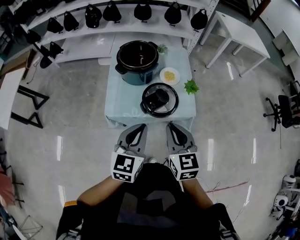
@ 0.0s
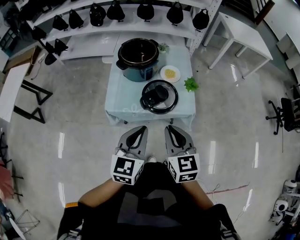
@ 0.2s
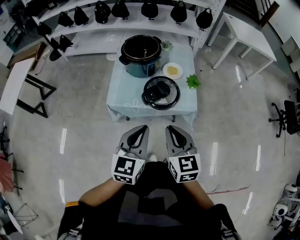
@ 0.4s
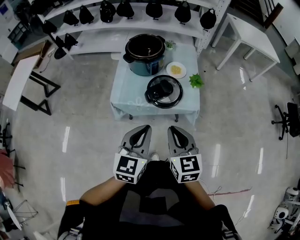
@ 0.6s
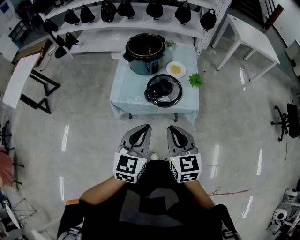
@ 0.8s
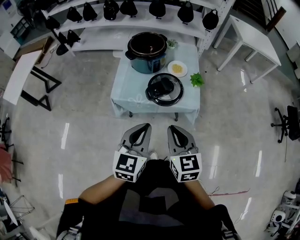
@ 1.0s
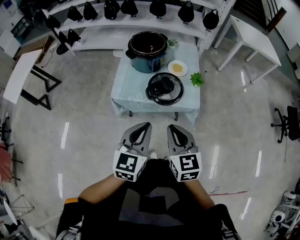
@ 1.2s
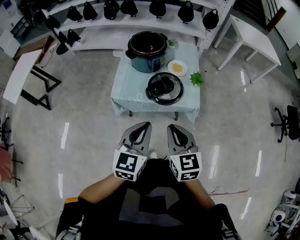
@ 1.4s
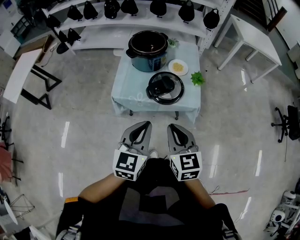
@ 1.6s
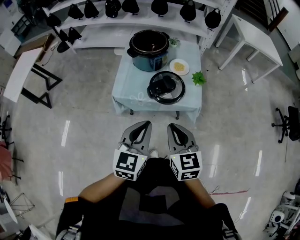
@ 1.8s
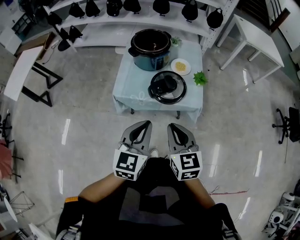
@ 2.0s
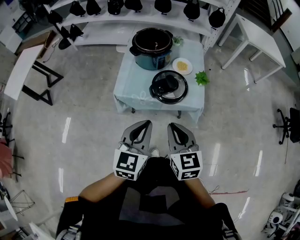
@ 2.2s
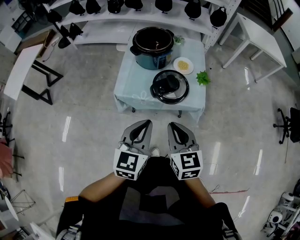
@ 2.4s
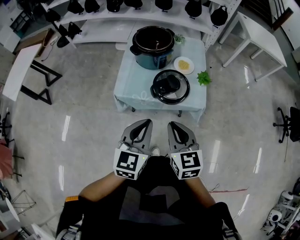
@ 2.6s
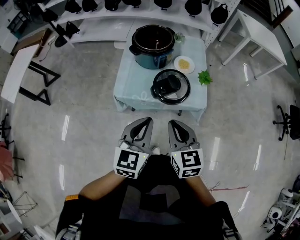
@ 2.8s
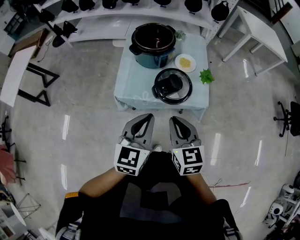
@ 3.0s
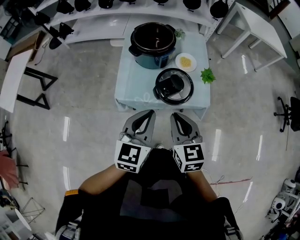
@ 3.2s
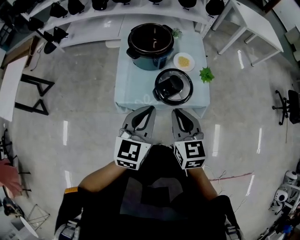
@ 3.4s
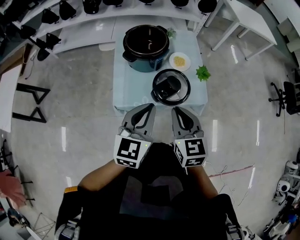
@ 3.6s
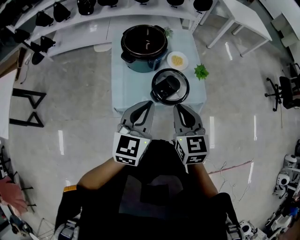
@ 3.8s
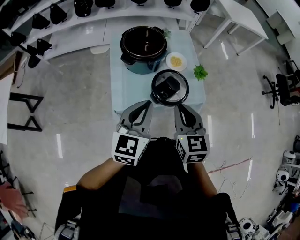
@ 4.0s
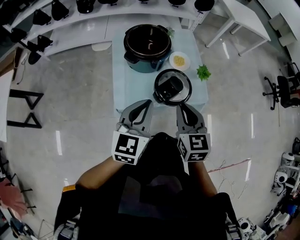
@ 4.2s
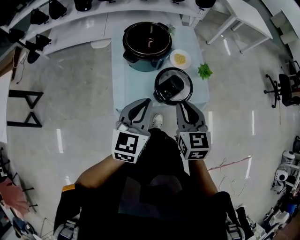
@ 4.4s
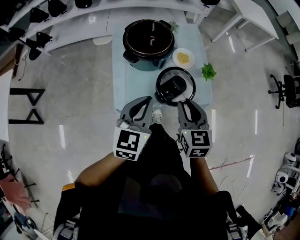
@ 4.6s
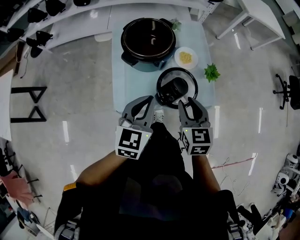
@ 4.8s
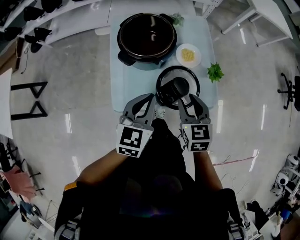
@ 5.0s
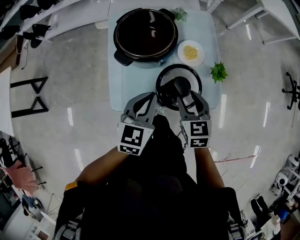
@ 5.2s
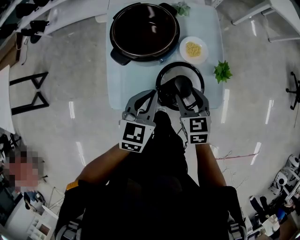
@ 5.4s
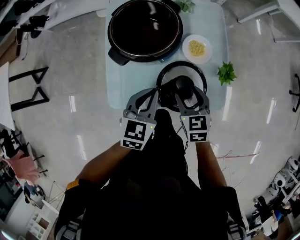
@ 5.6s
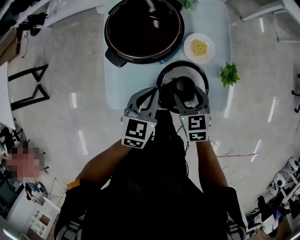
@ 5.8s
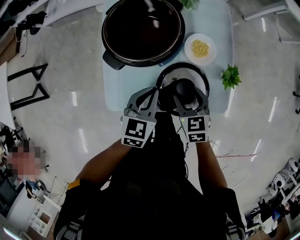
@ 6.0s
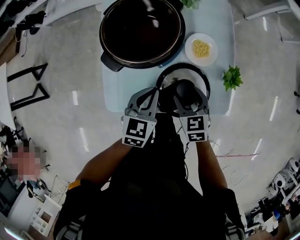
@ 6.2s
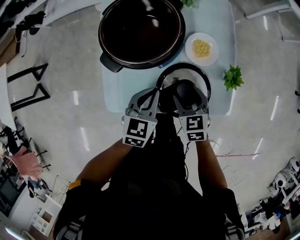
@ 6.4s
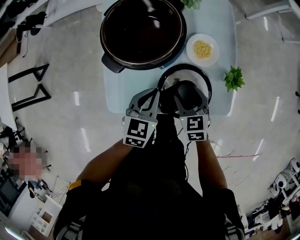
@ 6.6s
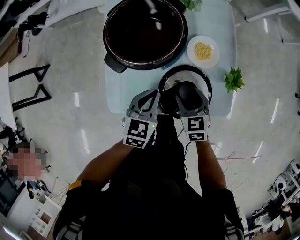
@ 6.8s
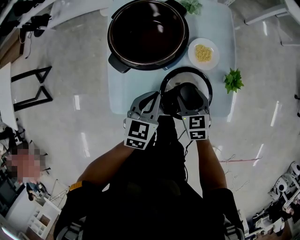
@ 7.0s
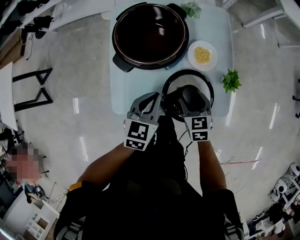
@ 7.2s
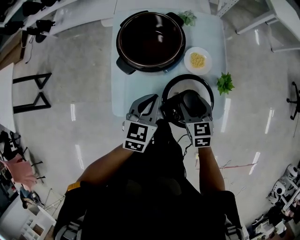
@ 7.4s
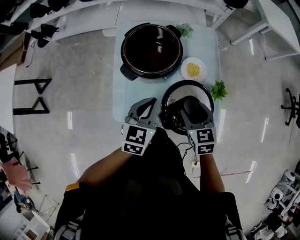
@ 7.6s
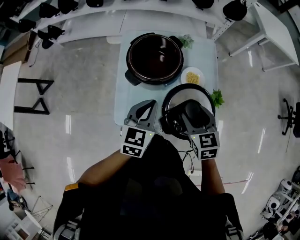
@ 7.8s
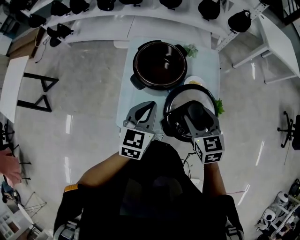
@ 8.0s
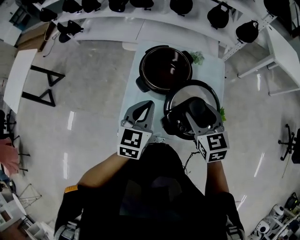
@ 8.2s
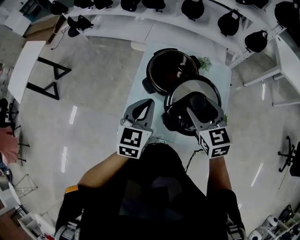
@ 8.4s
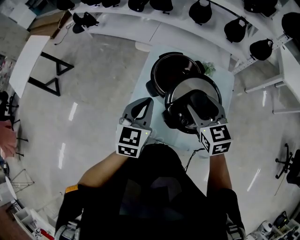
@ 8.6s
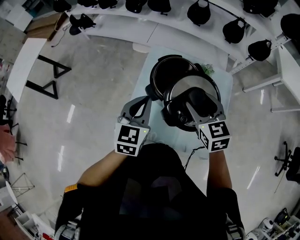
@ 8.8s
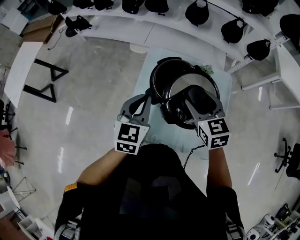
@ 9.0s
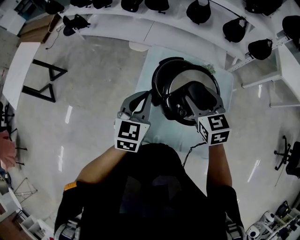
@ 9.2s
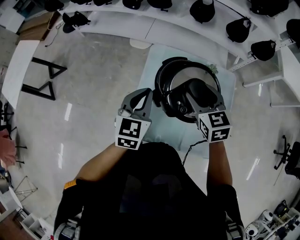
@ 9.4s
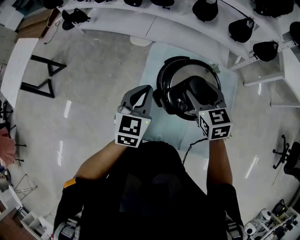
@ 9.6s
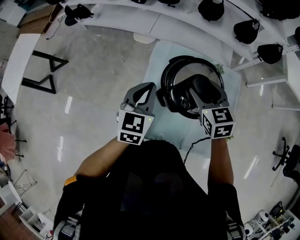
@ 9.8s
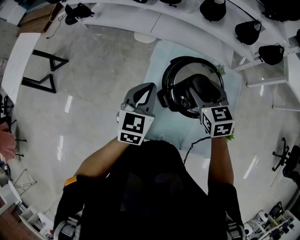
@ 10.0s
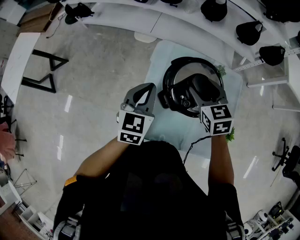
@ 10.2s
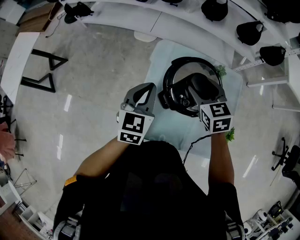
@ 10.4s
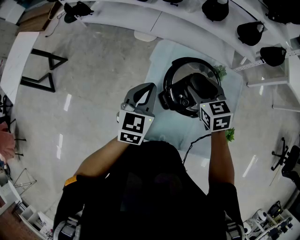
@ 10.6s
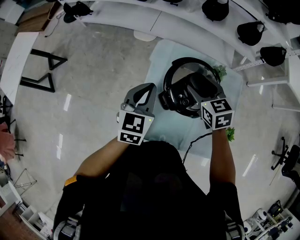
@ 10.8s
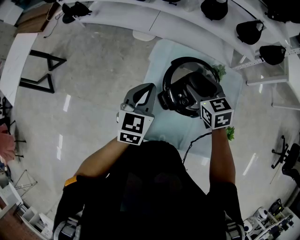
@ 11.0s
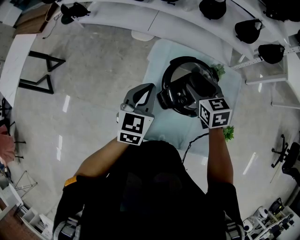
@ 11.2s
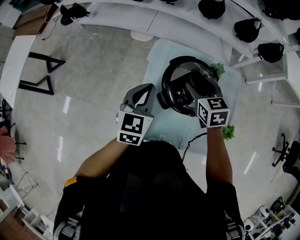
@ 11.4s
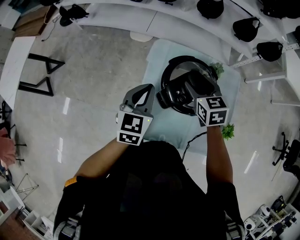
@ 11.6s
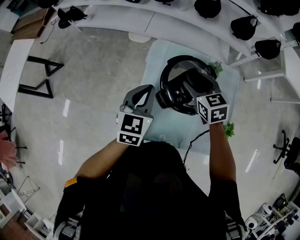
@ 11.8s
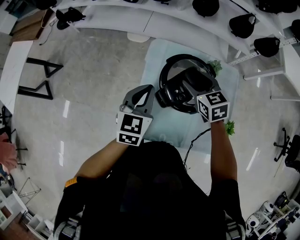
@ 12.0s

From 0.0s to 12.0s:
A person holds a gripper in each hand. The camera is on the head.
From 0.0s to 1.6s: The two grippers go some 10 cm backward.
From 1.6s to 3.0s: The two grippers go roughly 10 cm forward.
From 3.0s to 4.4s: The two grippers go approximately 15 cm forward and to the left.
From 4.4s to 6.0s: Both grippers travel together downward and forward, some 25 cm. The right gripper changes its angle by approximately 20 degrees, and opens its fingers. The left gripper rotates roughly 20 degrees.
From 6.0s to 7.6s: The two grippers go some 10 cm upward.
From 7.6s to 9.0s: The right gripper moves forward, upward and to the left, some 25 cm, and turns by about 20 degrees, while the left gripper is displaced to the left, upward and forward by approximately 20 cm, and changes its angle by approximately 20 degrees.
From 9.0s to 10.4s: The left gripper is displaced forward by about 5 cm; the right gripper travels forward and to the left by about 10 cm.
From 10.4s to 12.0s: The grippers move only a little.

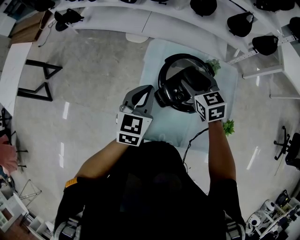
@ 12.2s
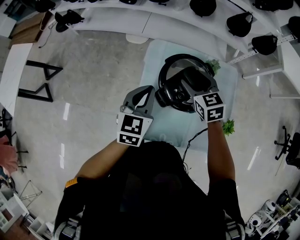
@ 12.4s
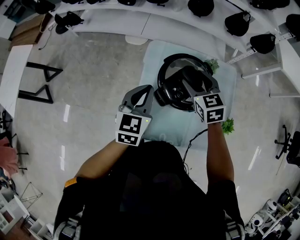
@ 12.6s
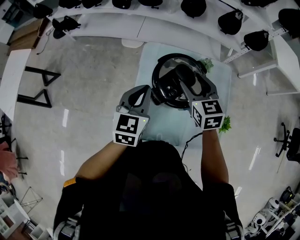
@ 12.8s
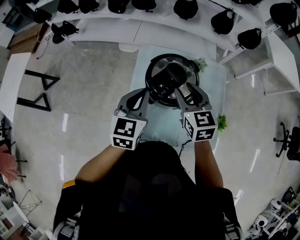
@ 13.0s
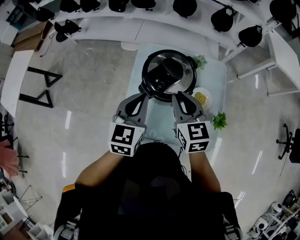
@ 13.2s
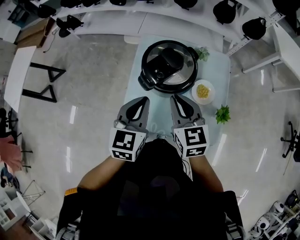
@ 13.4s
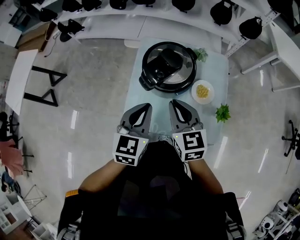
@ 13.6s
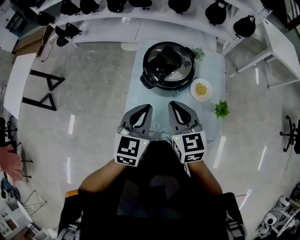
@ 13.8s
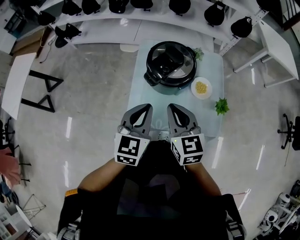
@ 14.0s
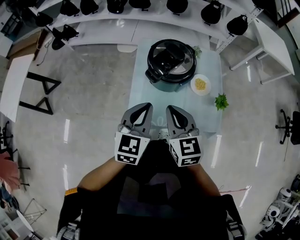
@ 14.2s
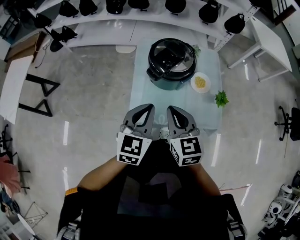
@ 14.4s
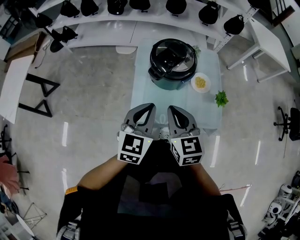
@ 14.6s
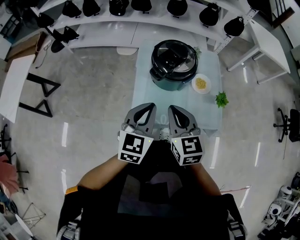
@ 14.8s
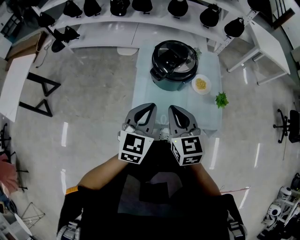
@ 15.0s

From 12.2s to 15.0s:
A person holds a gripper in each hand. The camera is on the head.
From 12.2s to 13.6s: The right gripper heads backward, covering approximately 20 cm, and closes its fingers; the left gripper heads backward and to the right, covering some 15 cm.
From 13.6s to 15.0s: Both grippers travel together backward and to the left, roughly 10 cm.

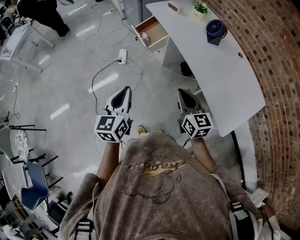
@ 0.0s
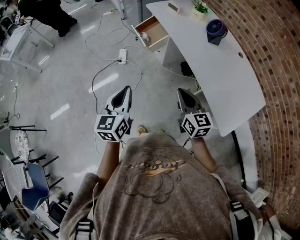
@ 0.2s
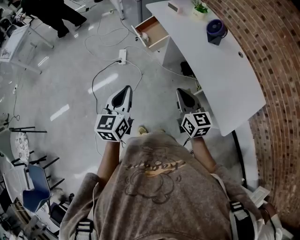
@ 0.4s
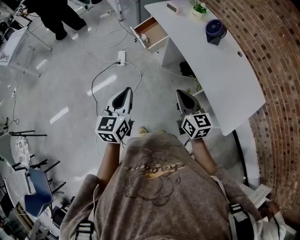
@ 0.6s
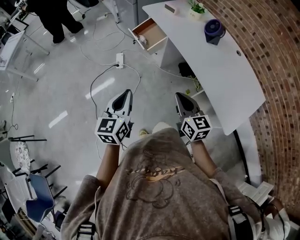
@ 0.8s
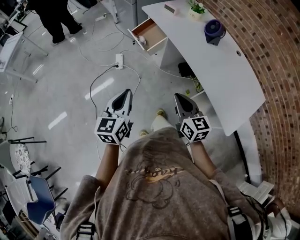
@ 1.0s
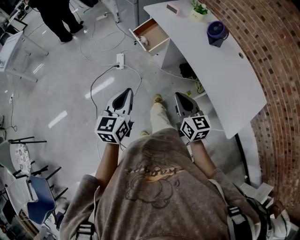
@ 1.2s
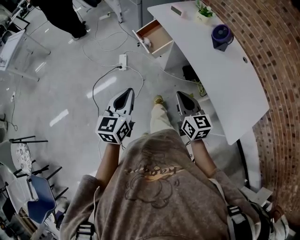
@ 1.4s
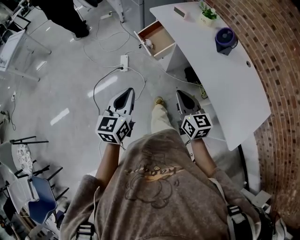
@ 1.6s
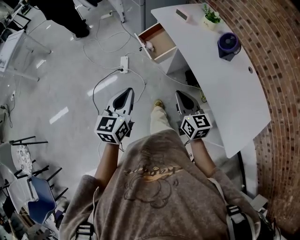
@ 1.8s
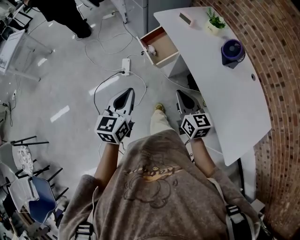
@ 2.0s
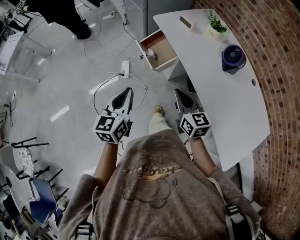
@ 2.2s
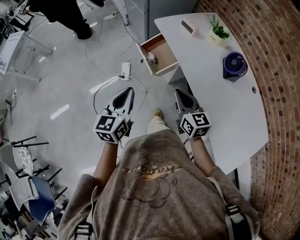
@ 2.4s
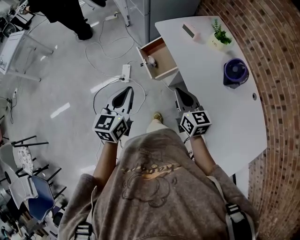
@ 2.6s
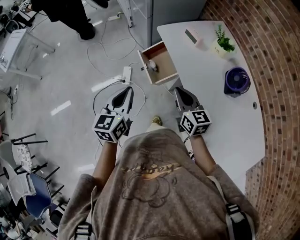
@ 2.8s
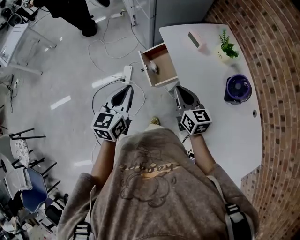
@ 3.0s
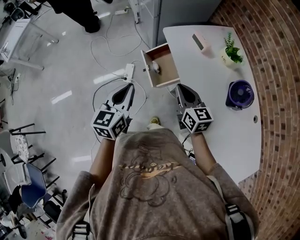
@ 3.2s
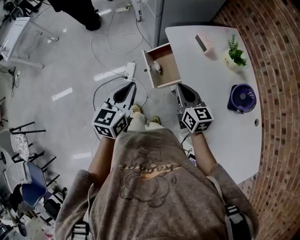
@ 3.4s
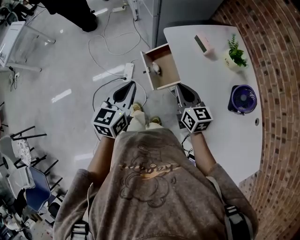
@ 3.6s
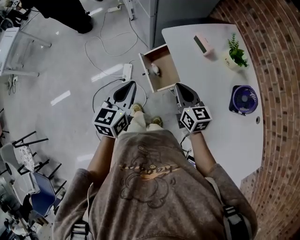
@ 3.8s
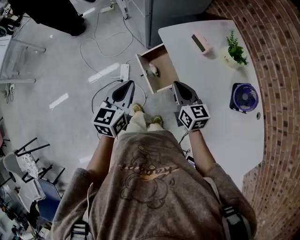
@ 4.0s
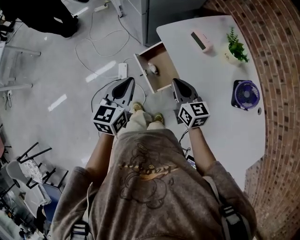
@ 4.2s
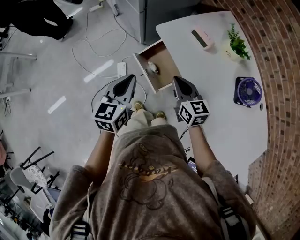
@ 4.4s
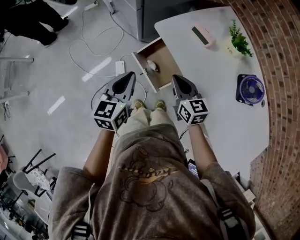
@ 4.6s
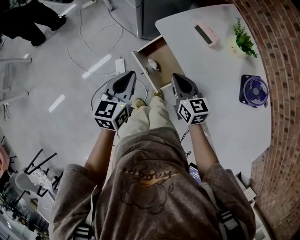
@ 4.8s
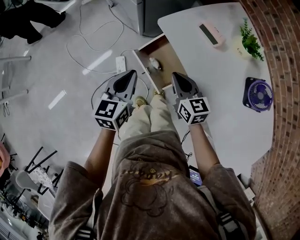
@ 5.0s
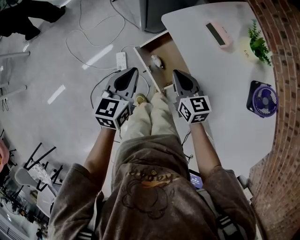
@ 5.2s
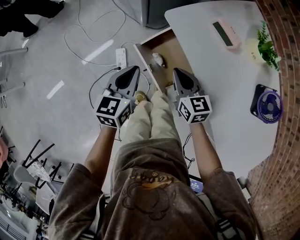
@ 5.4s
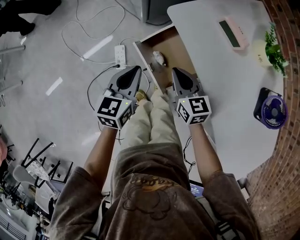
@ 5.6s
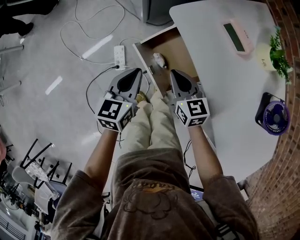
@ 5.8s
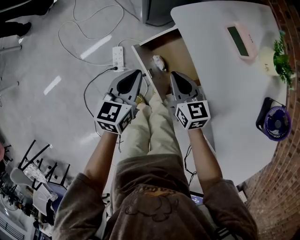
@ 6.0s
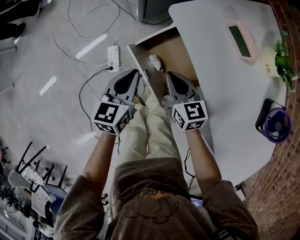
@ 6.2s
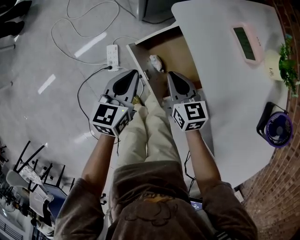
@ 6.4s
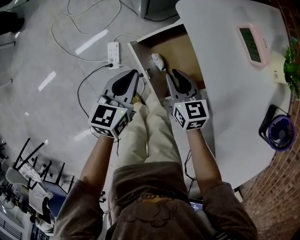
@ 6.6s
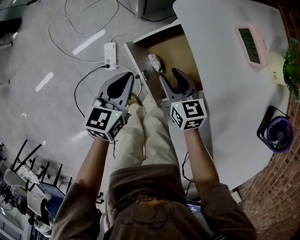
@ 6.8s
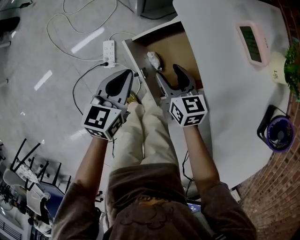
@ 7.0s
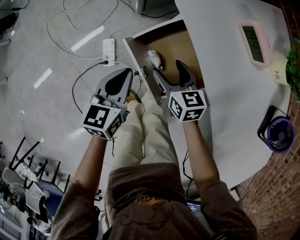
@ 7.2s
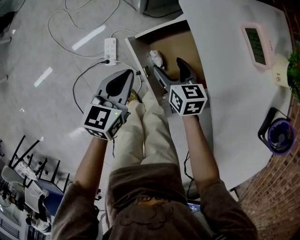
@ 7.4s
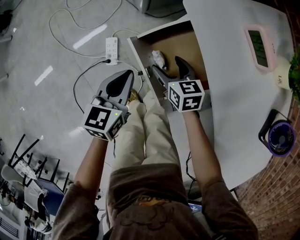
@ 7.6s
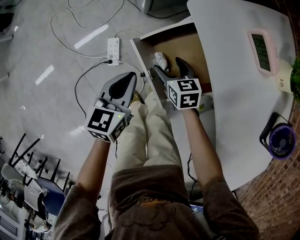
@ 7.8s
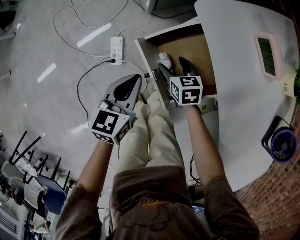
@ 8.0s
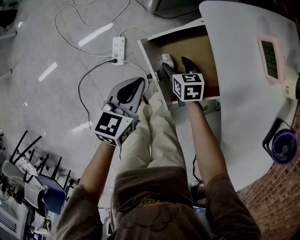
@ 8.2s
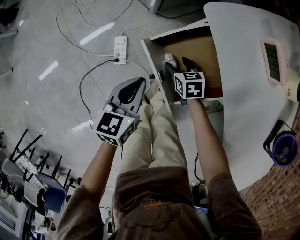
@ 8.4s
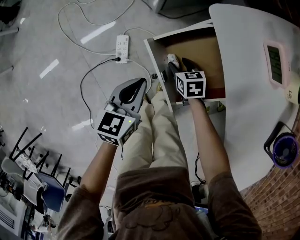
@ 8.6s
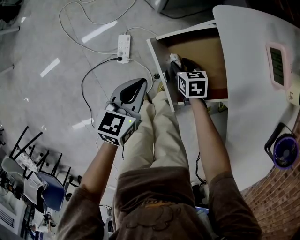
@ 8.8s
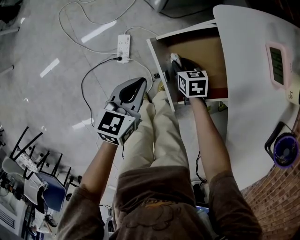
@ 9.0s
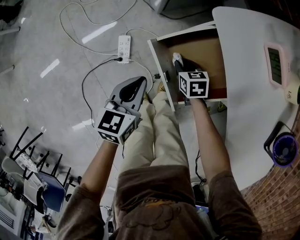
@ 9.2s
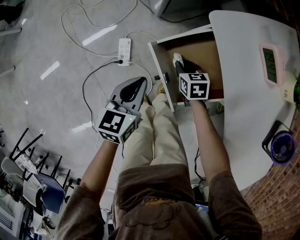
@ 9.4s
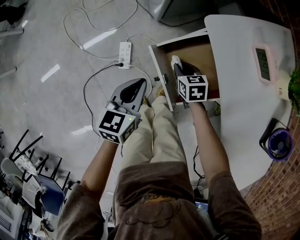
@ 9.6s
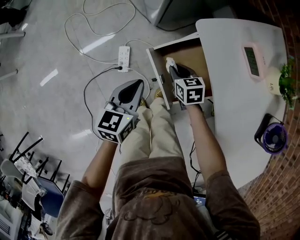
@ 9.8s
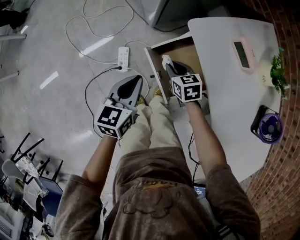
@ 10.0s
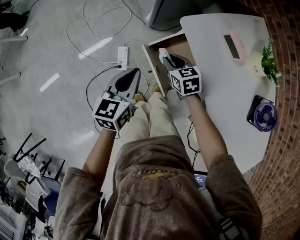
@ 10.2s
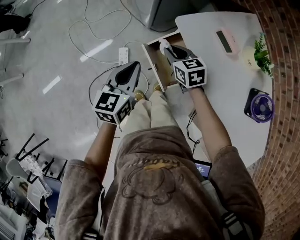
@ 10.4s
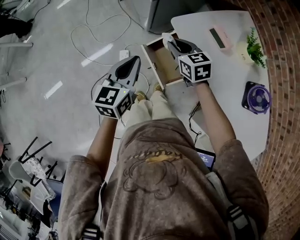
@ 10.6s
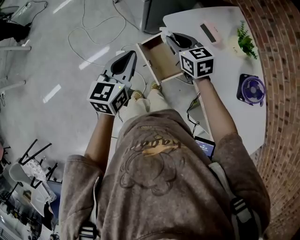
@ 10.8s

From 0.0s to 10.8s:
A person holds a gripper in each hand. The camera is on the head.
From 0.0s to 1.6s: The right gripper moves forward and to the left, about 10 cm. The left gripper moves forward, about 10 cm.
From 1.6s to 3.0s: Both grippers move forward, some 30 cm.
From 3.0s to 4.6s: The right gripper is displaced forward and downward by about 15 cm. Meanwhile the left gripper moves forward, some 20 cm.
From 4.6s to 6.2s: The grippers both shift downward by some 20 cm.
From 6.2s to 7.8s: The right gripper heads downward, covering about 10 cm, and opens.
From 7.8s to 9.2s: The right gripper moves downward, about 5 cm, and closes its fingers.
From 9.2s to 10.8s: The two grippers go some 35 cm upward. The right gripper rotates about 30 degrees.
